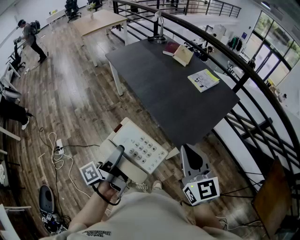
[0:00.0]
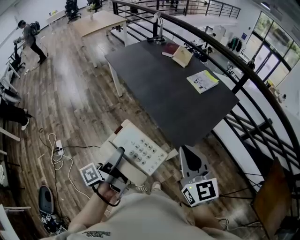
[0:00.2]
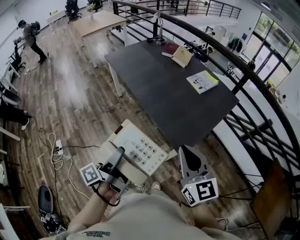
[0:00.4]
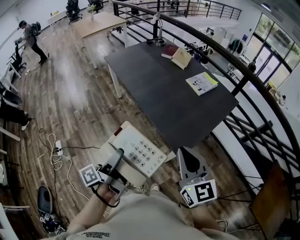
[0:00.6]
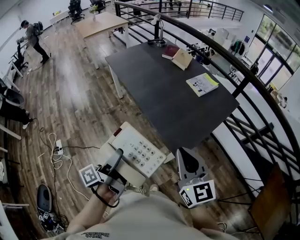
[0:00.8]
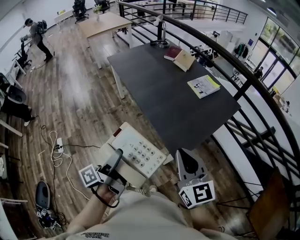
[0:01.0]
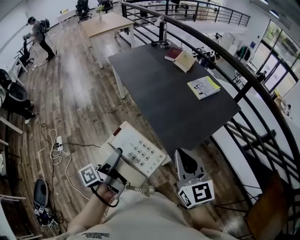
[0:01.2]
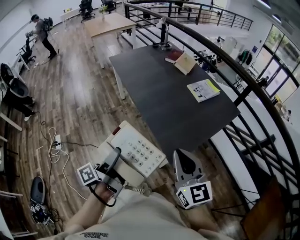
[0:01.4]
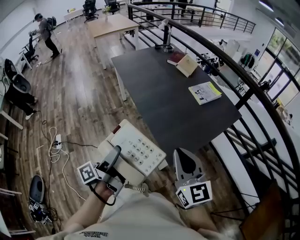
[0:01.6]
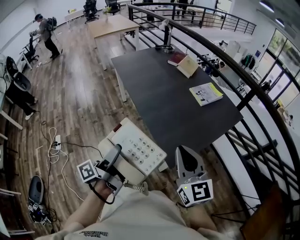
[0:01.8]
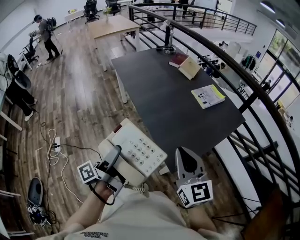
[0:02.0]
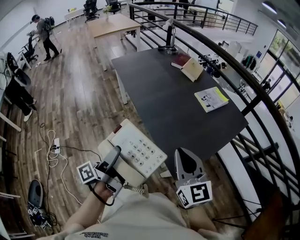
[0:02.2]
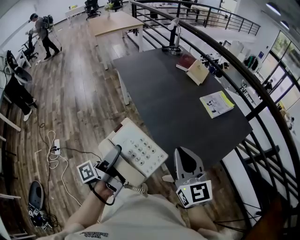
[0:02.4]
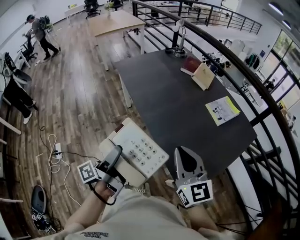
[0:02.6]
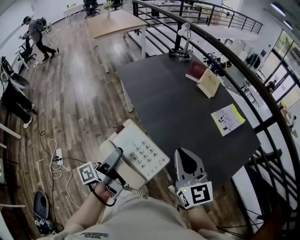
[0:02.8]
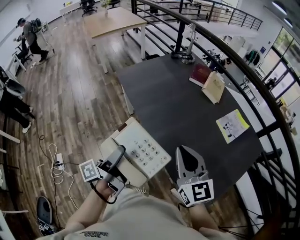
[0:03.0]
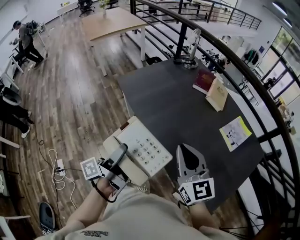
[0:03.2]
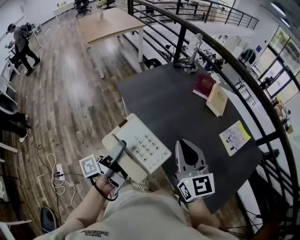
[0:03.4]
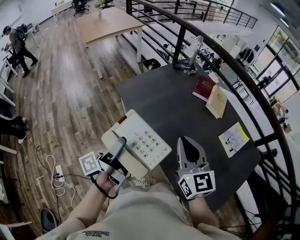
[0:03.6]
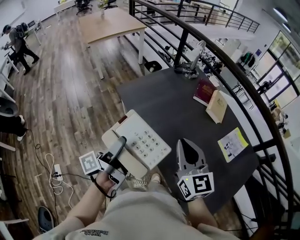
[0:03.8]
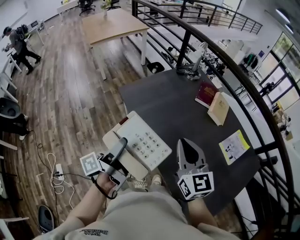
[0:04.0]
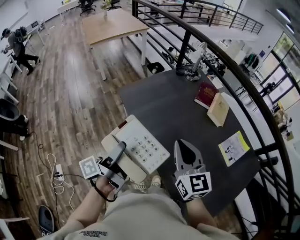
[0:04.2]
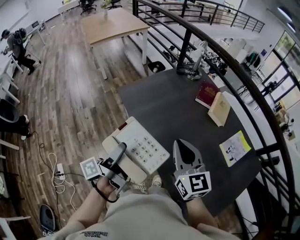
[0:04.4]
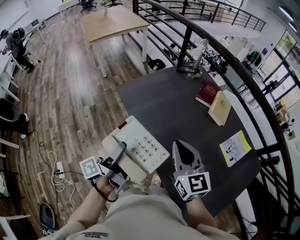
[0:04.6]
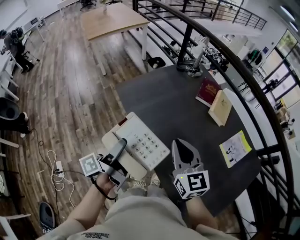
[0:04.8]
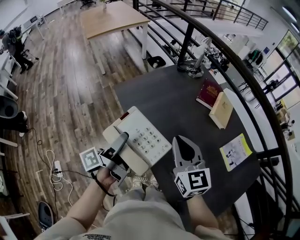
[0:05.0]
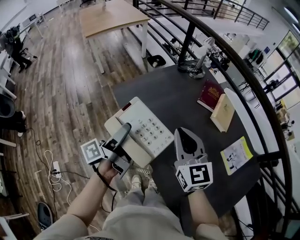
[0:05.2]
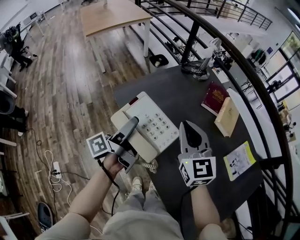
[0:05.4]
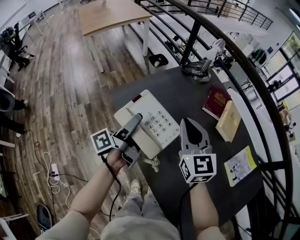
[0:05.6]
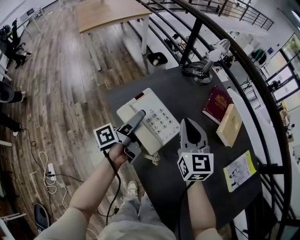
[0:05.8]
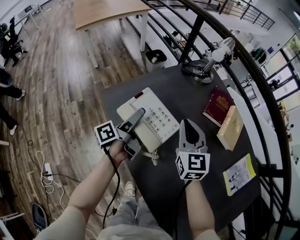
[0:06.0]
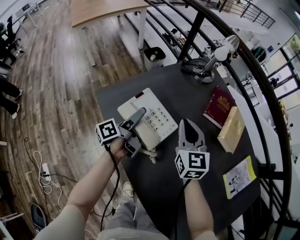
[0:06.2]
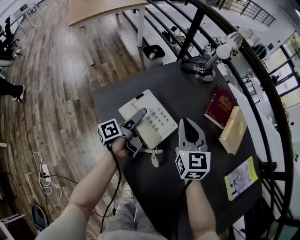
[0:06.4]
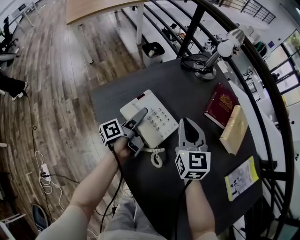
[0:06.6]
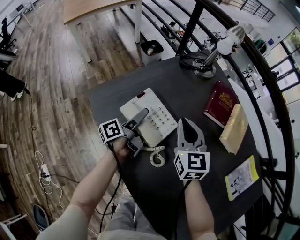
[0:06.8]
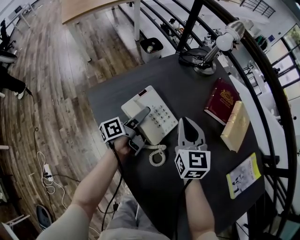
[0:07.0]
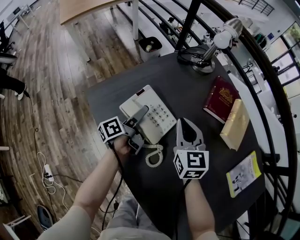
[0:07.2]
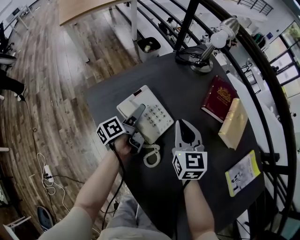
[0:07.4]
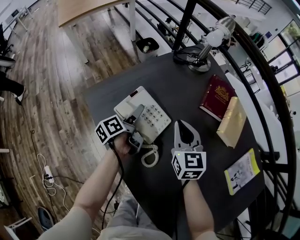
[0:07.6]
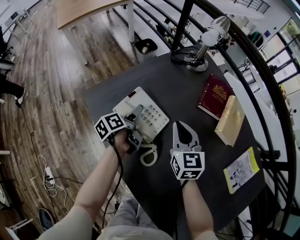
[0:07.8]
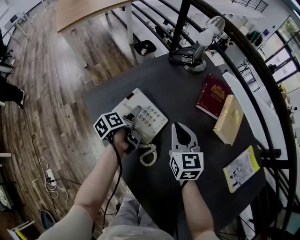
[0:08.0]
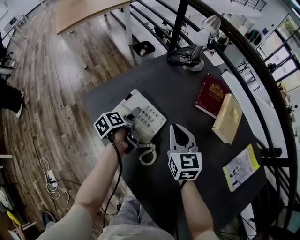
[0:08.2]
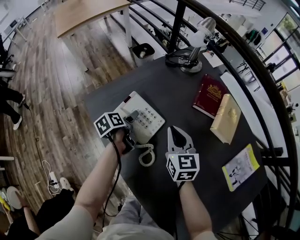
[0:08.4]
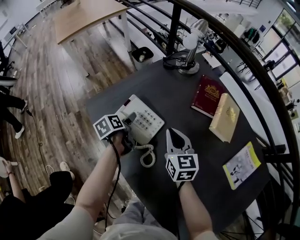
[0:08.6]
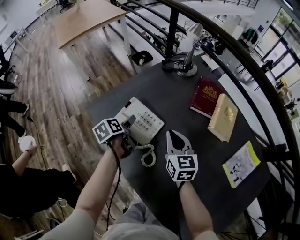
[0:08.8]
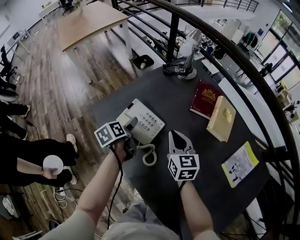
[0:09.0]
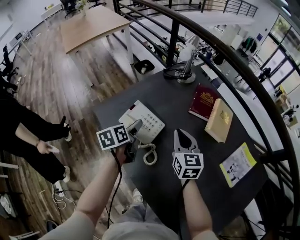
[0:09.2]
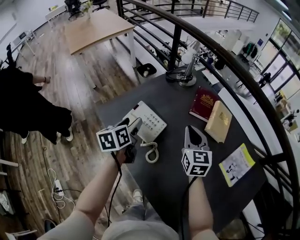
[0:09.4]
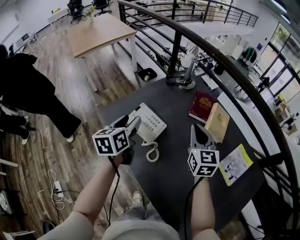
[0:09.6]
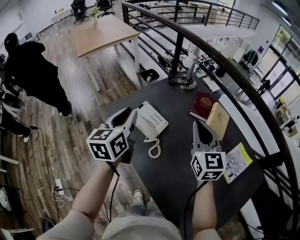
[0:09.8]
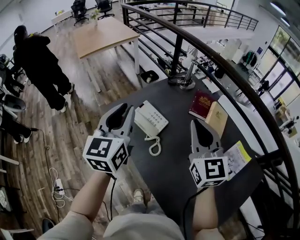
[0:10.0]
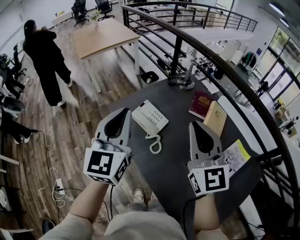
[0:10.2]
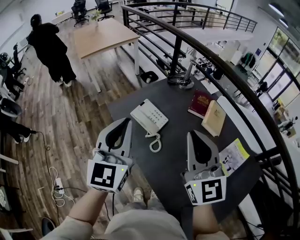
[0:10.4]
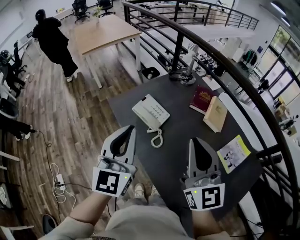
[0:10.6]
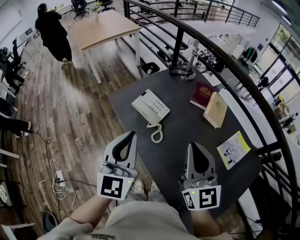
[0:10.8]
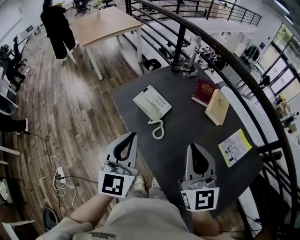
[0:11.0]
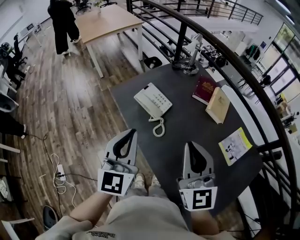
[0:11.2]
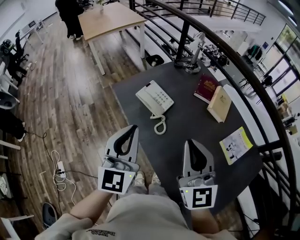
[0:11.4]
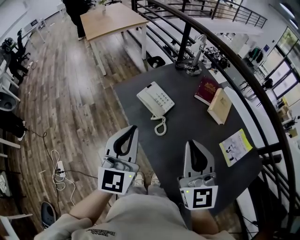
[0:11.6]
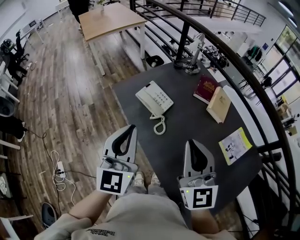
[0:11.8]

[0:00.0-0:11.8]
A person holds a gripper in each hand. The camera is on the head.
0:00.0 to 0:01.4: The right gripper moves approximately 5 cm.
0:01.4 to 0:03.0: The right gripper moves approximately 40 cm.
0:03.0 to 0:04.4: The right gripper changes place by roughly 20 cm.
0:04.4 to 0:06.0: The right gripper shifts by about 35 cm.
0:06.0 to 0:07.4: The right gripper shifts about 10 cm downward.
0:07.4 to 0:08.8: The right gripper changes place by some 5 cm.
0:08.8 to 0:10.4: The right gripper travels upward by about 35 cm, and changes its angle by about 40 degrees.
0:10.4 to 0:11.8: The right gripper ends up roughly 10 cm from where it was.

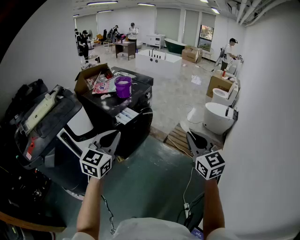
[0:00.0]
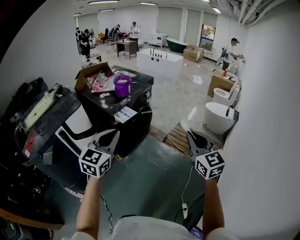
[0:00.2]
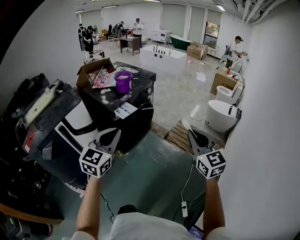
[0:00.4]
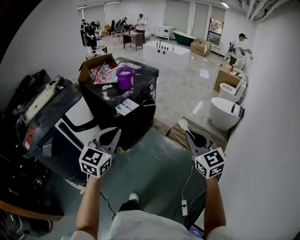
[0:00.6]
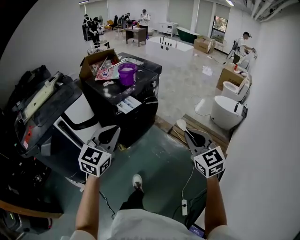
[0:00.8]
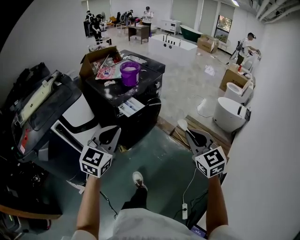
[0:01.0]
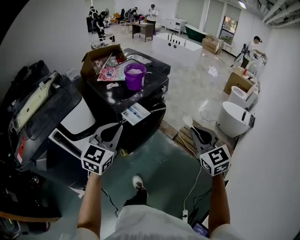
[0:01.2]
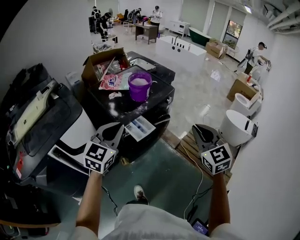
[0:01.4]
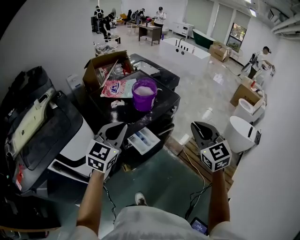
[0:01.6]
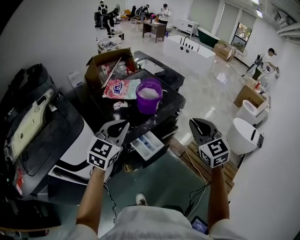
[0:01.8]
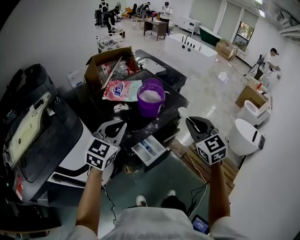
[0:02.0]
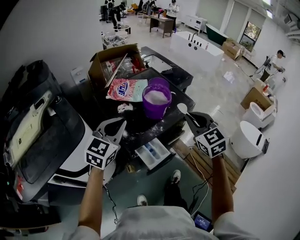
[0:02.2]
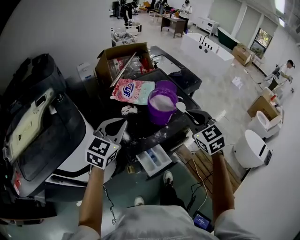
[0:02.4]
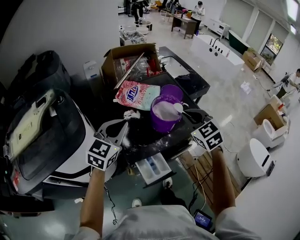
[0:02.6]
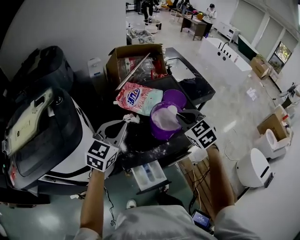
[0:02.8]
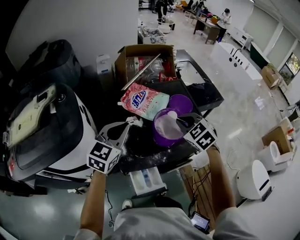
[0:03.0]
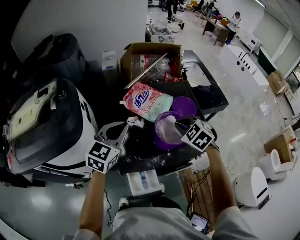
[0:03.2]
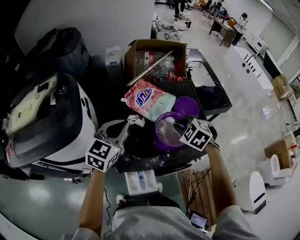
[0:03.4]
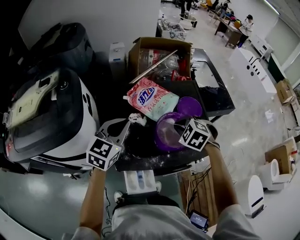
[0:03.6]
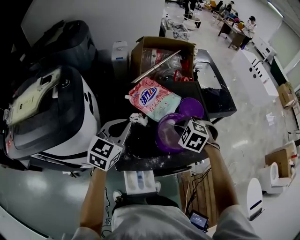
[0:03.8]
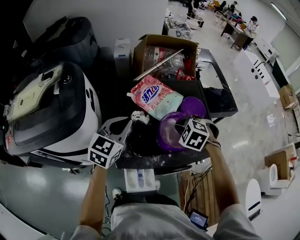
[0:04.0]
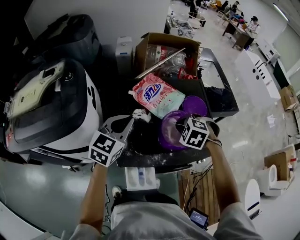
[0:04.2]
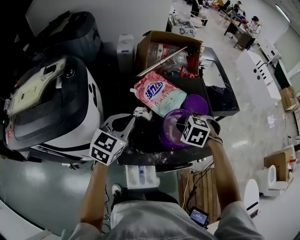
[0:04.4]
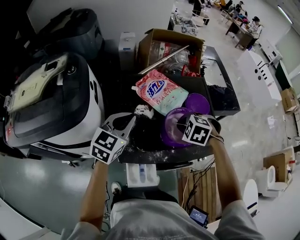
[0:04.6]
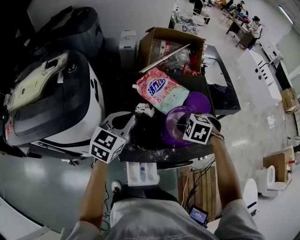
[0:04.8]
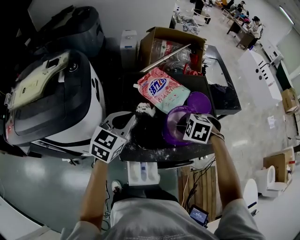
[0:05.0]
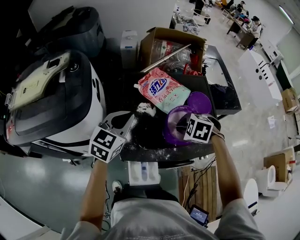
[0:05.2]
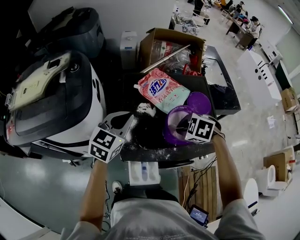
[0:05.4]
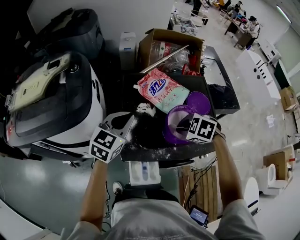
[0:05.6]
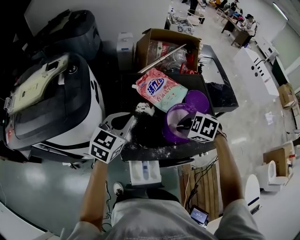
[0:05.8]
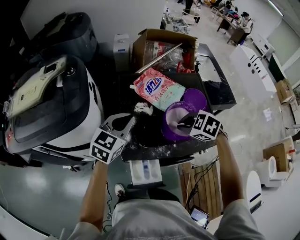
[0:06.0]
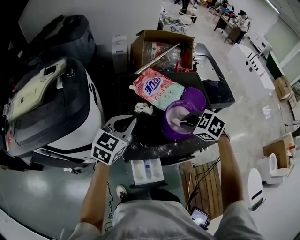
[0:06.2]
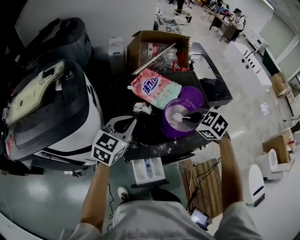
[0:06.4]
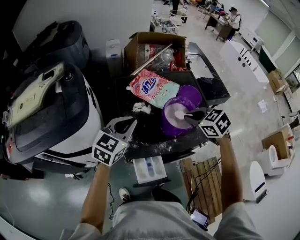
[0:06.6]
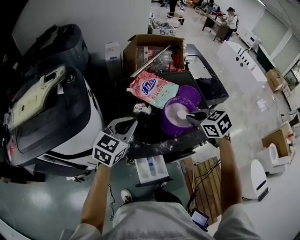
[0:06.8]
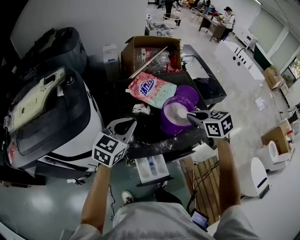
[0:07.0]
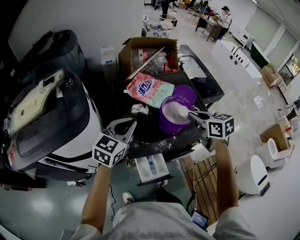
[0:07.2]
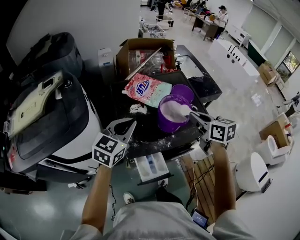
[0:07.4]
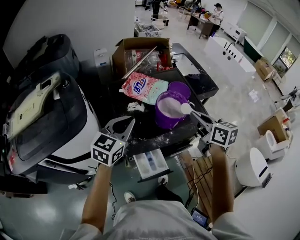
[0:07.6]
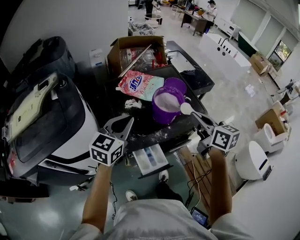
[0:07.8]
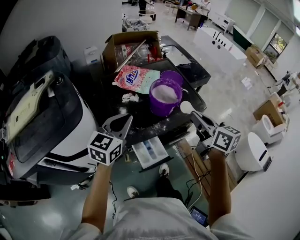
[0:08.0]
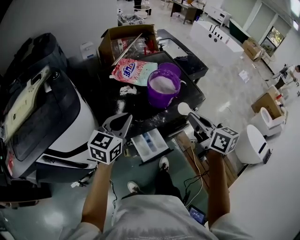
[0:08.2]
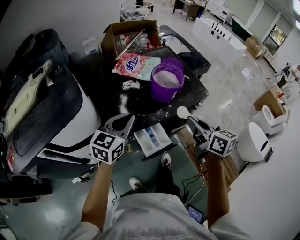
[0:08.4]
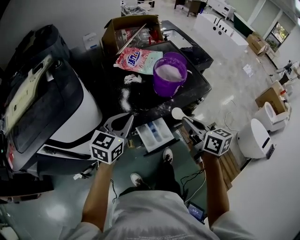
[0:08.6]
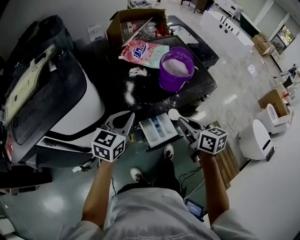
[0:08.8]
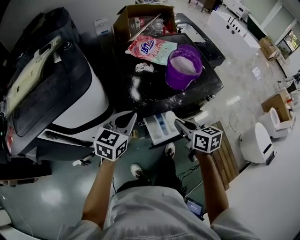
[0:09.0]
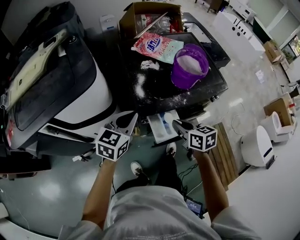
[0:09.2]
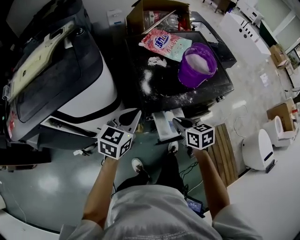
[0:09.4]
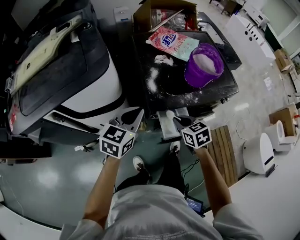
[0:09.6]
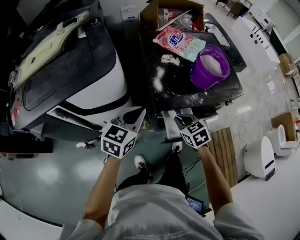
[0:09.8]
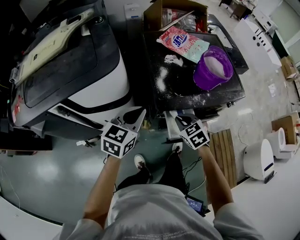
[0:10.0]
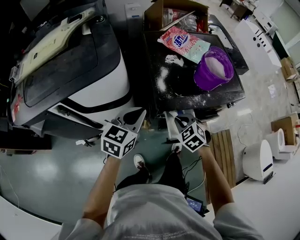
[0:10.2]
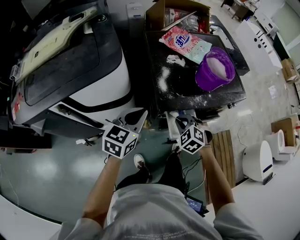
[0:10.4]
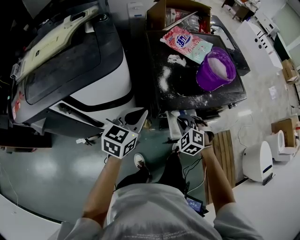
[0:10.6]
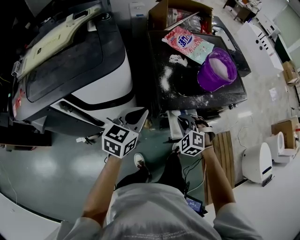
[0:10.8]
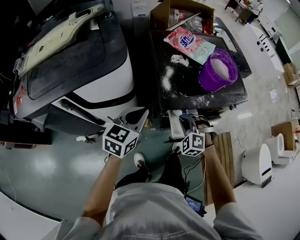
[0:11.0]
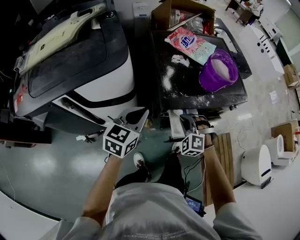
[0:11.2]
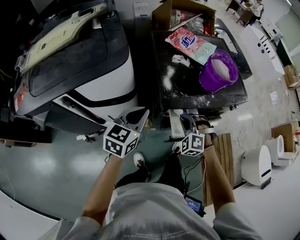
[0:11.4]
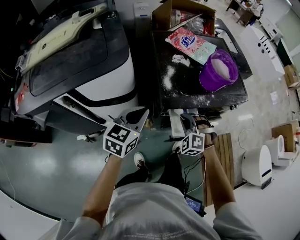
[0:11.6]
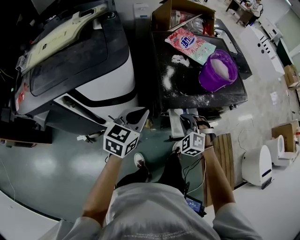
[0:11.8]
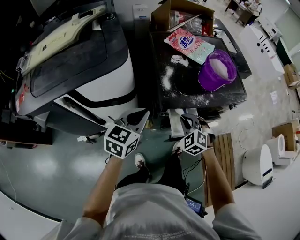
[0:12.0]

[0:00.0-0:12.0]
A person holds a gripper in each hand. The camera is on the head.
0:00.0 to 0:01.6: The grippers both shift forward by roughly 40 cm.
0:01.6 to 0:03.0: The right gripper shifts by some 40 cm, and points its fingers roughly 30 degrees further downward; the left gripper shifts by roughly 25 cm, and turns by some 30 degrees.
0:03.0 to 0:04.4: The right gripper heads downward, covering about 10 cm, and turns by about 40 degrees.
0:04.4 to 0:06.0: The right gripper ends up some 5 cm from where it was.
0:06.0 to 0:07.6: The left gripper changes place by about 5 cm. Meanwhile the right gripper is displaced upward by roughly 10 cm, and angles its fingers upward, by about 50 degrees.
0:07.6 to 0:09.0: The left gripper shifts roughly 15 cm backward and downward. The right gripper moves downward, backward and to the left, some 25 cm.
0:09.0 to 0:10.4: The left gripper shifts about 5 cm to the left, while the right gripper travels downward and to the left by approximately 15 cm, and rolls counterclockwise, seen from behind, by about 70 degrees.
